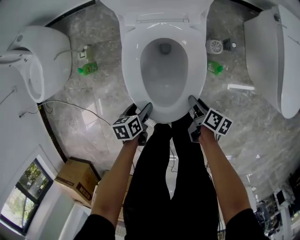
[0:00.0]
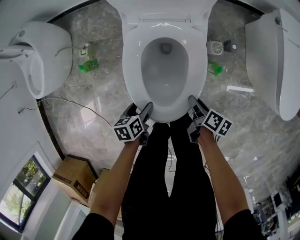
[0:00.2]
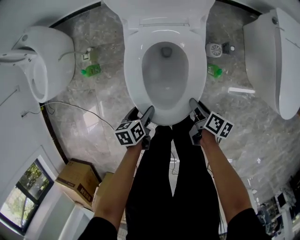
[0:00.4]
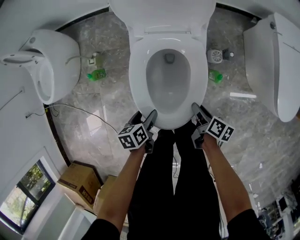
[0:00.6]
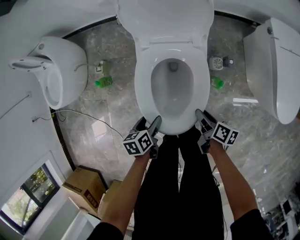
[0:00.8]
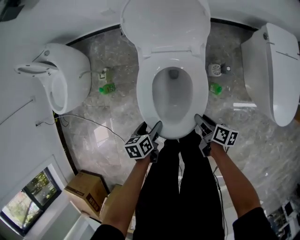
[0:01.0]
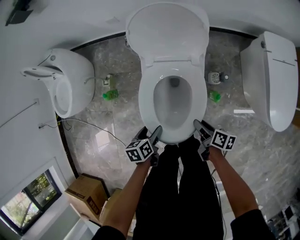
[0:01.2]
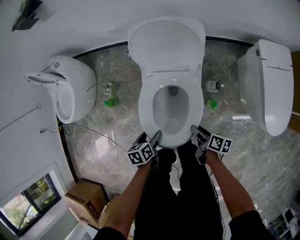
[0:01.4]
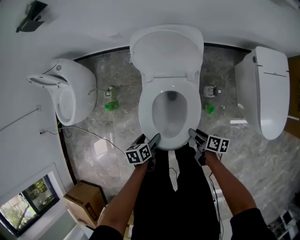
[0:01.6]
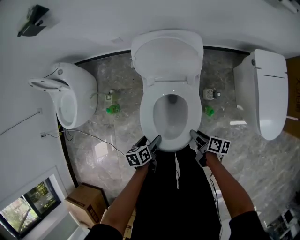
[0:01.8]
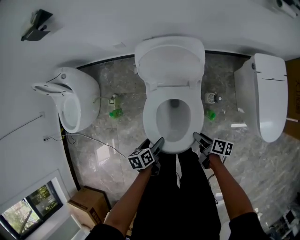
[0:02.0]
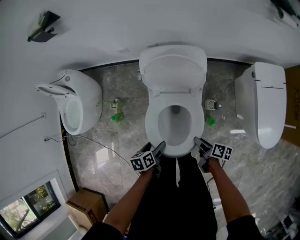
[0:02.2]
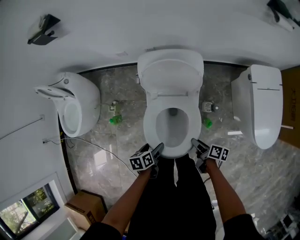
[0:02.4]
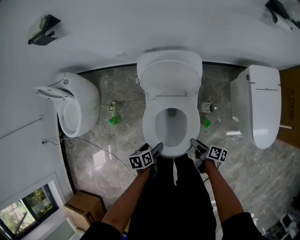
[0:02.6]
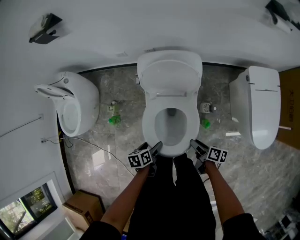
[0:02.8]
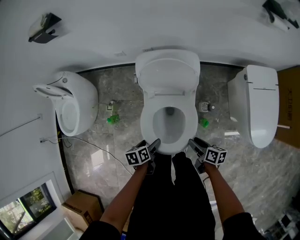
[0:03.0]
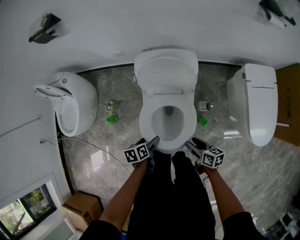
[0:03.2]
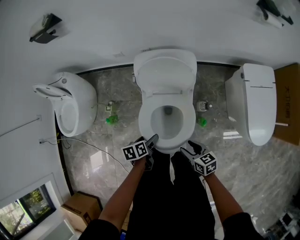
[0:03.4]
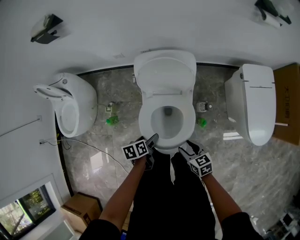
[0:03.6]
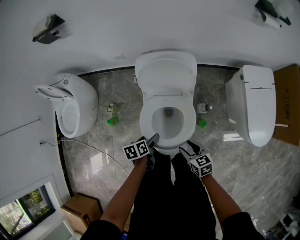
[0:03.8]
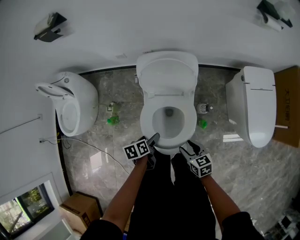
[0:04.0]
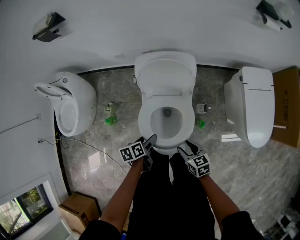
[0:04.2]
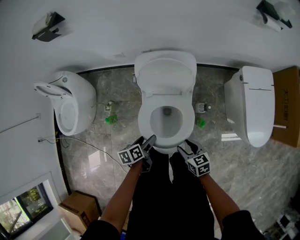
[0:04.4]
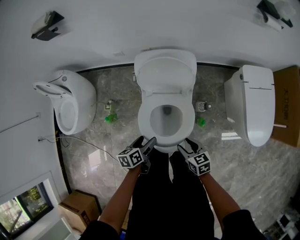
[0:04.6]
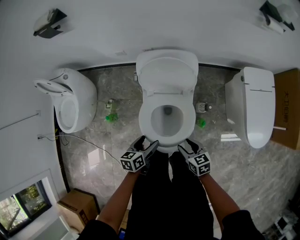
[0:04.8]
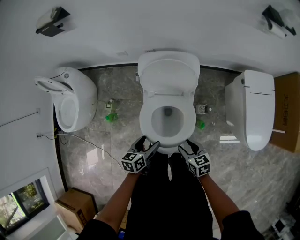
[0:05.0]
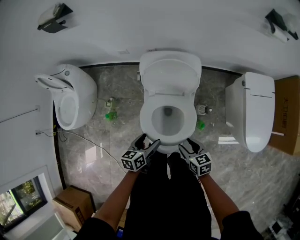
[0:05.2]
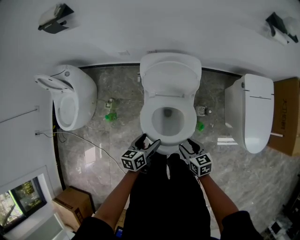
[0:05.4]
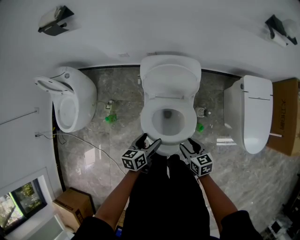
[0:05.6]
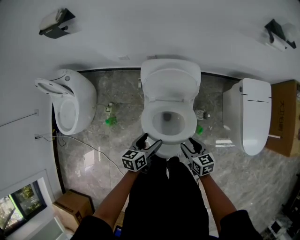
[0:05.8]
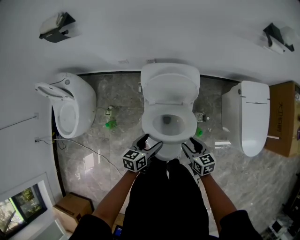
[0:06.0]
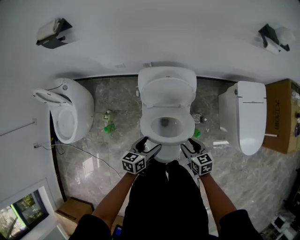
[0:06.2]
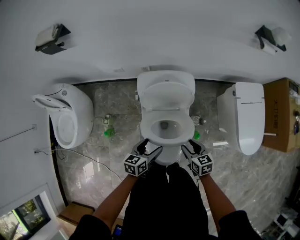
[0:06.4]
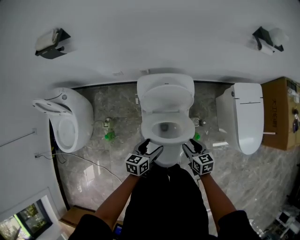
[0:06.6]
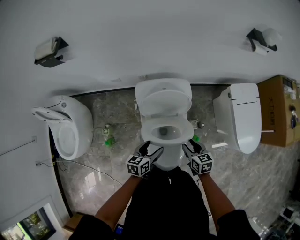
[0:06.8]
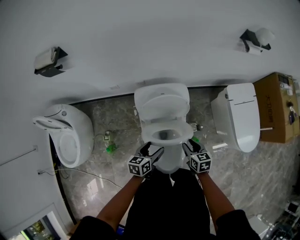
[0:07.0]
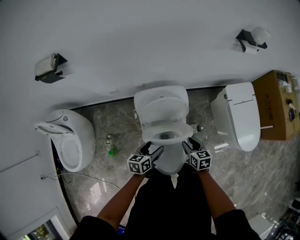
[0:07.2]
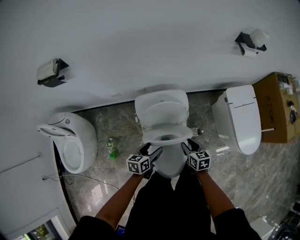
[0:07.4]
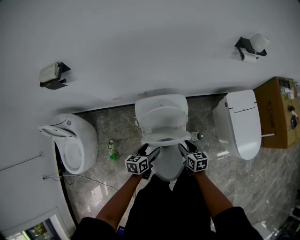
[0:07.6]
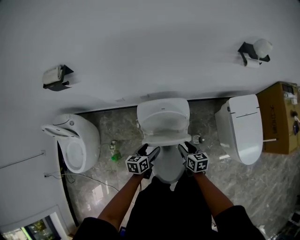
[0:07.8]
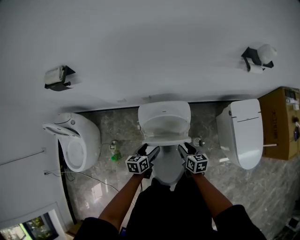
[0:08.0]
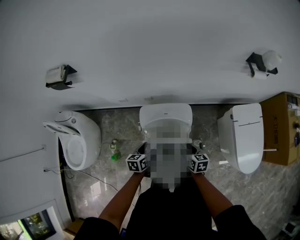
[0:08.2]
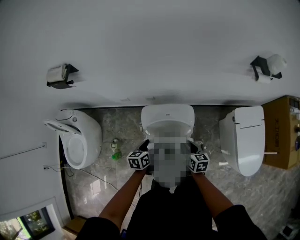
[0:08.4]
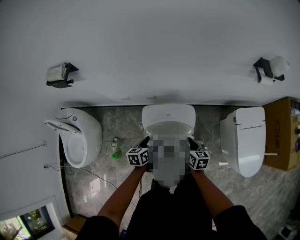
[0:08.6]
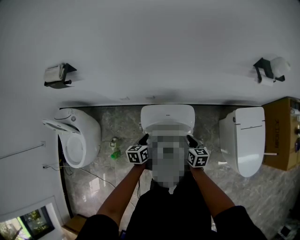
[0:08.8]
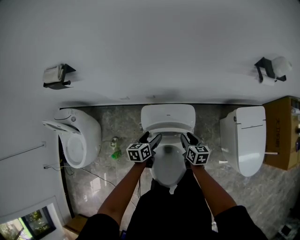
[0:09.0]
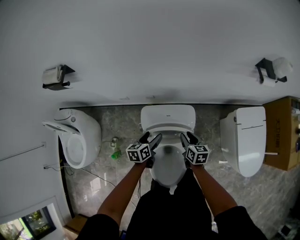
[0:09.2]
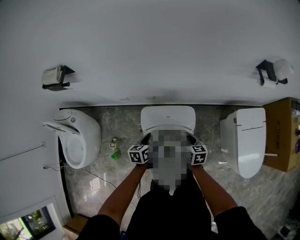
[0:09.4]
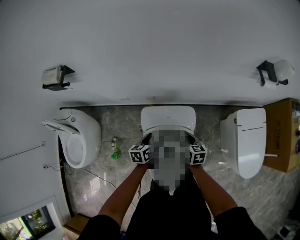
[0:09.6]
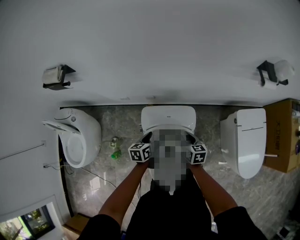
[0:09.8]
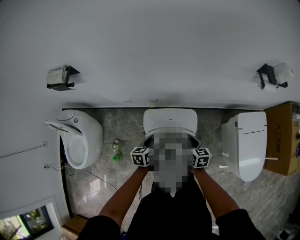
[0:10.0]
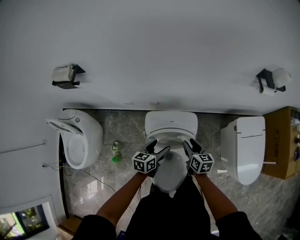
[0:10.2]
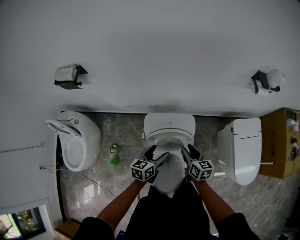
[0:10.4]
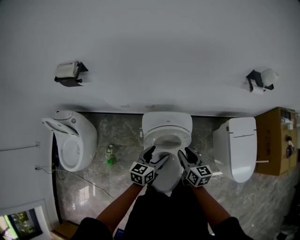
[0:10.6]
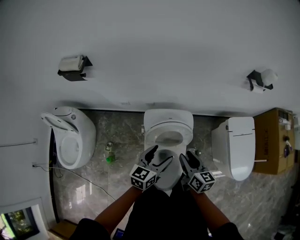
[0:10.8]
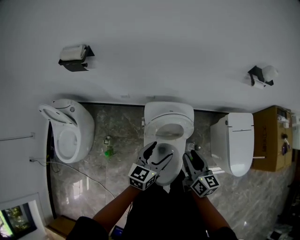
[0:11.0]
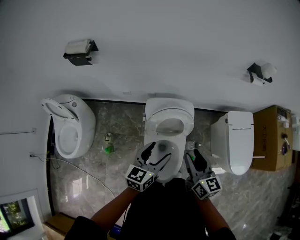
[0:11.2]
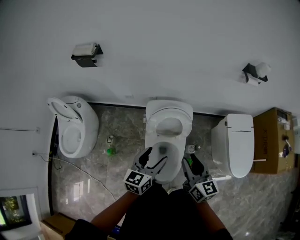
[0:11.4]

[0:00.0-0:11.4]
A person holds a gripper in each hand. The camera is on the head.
0.0 to 1.4 s: Both grippers move upward, approximately 15 cm.
1.4 to 2.8 s: The left gripper travels upward and forward by roughly 10 cm; the right gripper is displaced upward by about 5 cm.
2.8 to 4.2 s: The right gripper shifts some 10 cm upward and to the left, and rolls counterclockwise, seen from behind, by approximately 50 degrees.
4.2 to 5.6 s: The left gripper goes some 5 cm upward, and rotates some 20 degrees.
5.6 to 7.2 s: The right gripper travels forward and upward by approximately 15 cm, while the left gripper goes approximately 10 cm forward.
7.2 to 8.6 s: The two grippers go roughly 15 cm forward.
8.6 to 10.0 s: There are only small adjustments of the grippers.
10.0 to 11.4 s: Both grippers travel together backward and upward, approximately 35 cm. The right gripper changes its angle by some 20 degrees. Meanwhile the left gripper turns by roughly 30 degrees.

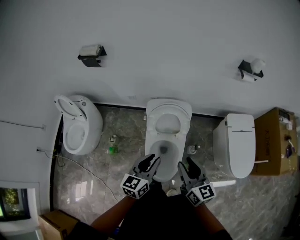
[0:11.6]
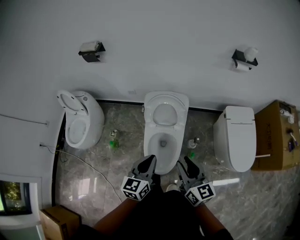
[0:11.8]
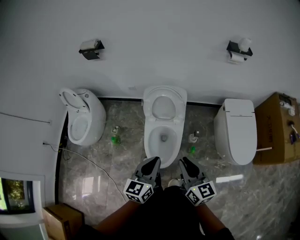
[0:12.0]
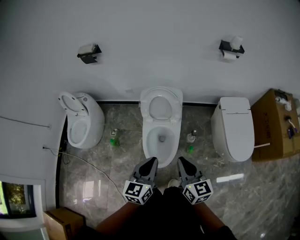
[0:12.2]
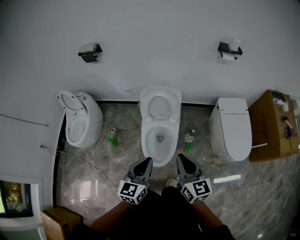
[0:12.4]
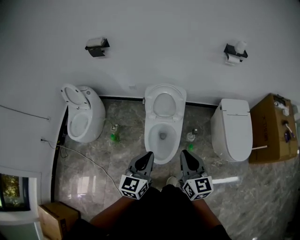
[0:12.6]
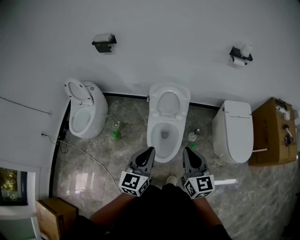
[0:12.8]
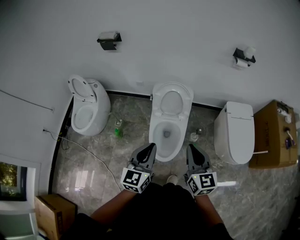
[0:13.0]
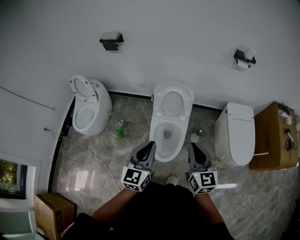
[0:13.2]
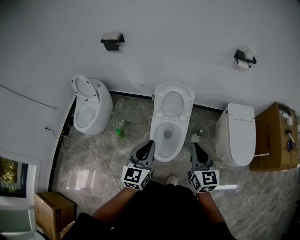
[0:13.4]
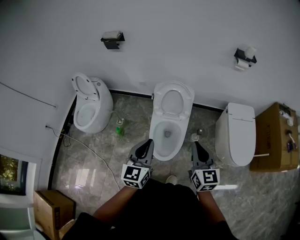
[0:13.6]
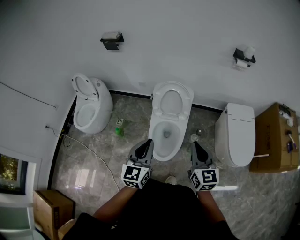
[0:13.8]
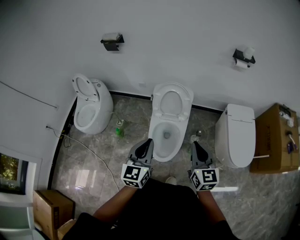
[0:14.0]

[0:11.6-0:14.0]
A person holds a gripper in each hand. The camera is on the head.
11.6 to 12.8 s: The left gripper shifts roughly 20 cm backward and upward. The right gripper goes some 15 cm backward, and closes.
12.8 to 14.0 s: The right gripper shifts approximately 5 cm to the right.

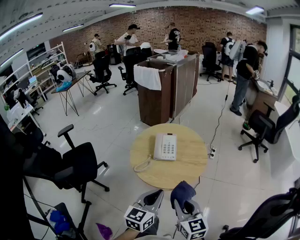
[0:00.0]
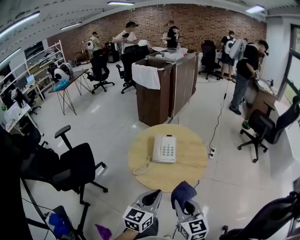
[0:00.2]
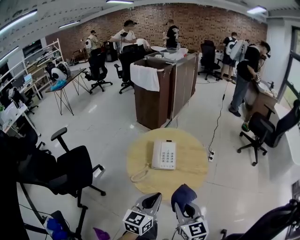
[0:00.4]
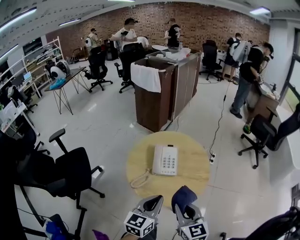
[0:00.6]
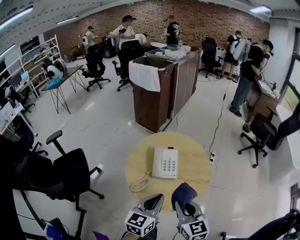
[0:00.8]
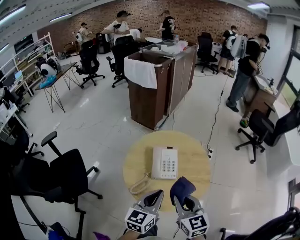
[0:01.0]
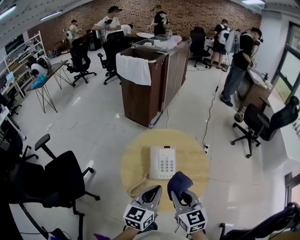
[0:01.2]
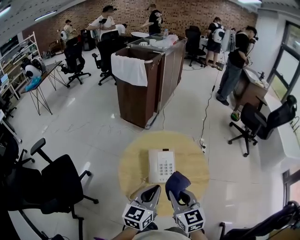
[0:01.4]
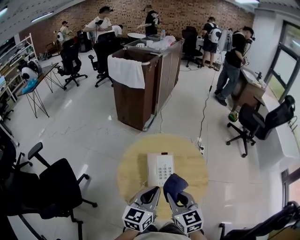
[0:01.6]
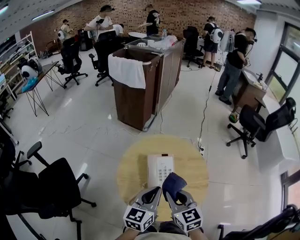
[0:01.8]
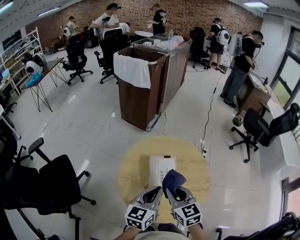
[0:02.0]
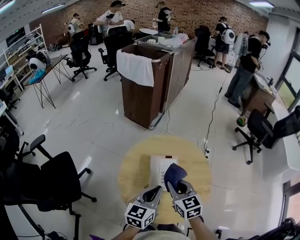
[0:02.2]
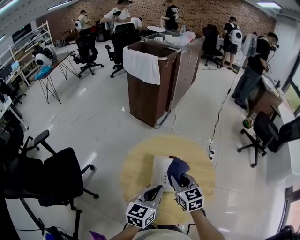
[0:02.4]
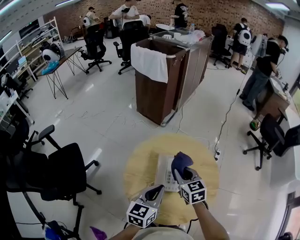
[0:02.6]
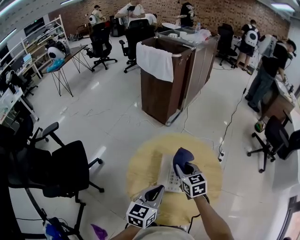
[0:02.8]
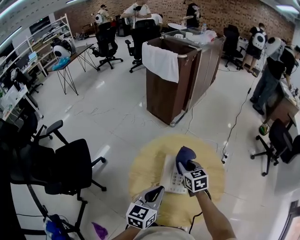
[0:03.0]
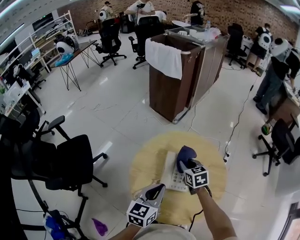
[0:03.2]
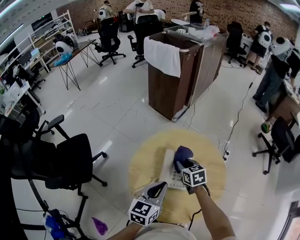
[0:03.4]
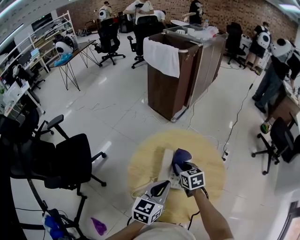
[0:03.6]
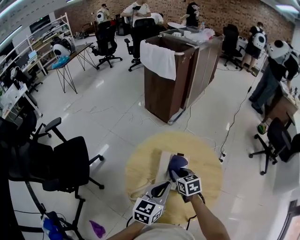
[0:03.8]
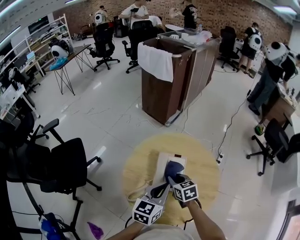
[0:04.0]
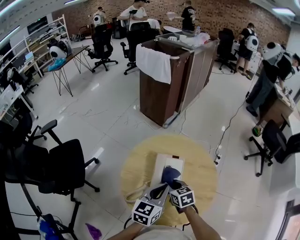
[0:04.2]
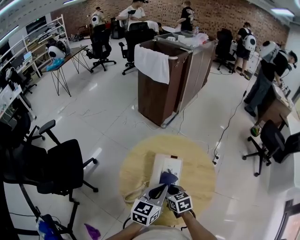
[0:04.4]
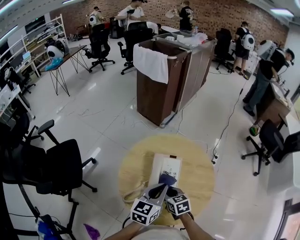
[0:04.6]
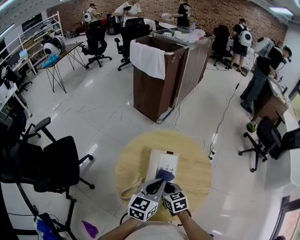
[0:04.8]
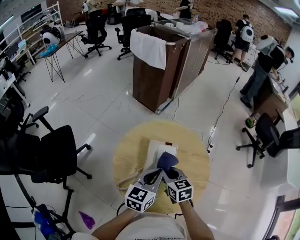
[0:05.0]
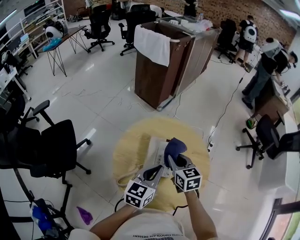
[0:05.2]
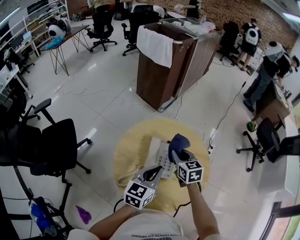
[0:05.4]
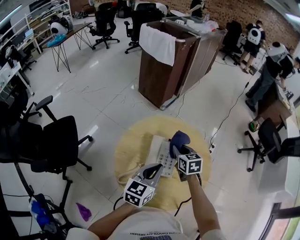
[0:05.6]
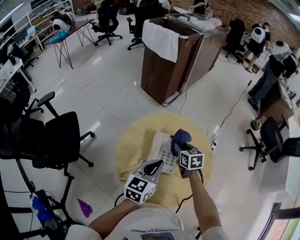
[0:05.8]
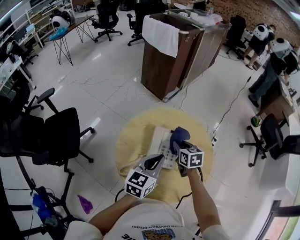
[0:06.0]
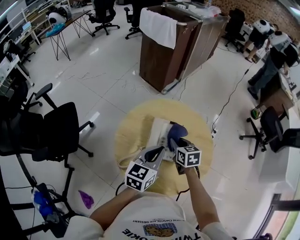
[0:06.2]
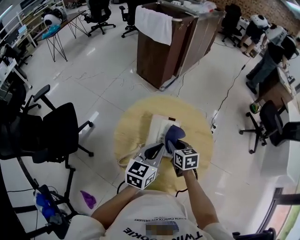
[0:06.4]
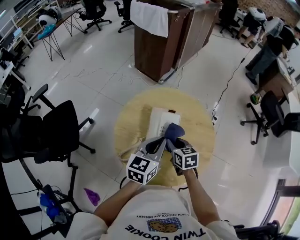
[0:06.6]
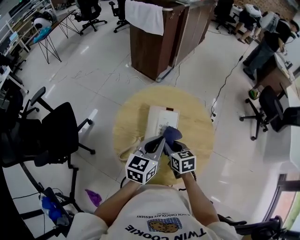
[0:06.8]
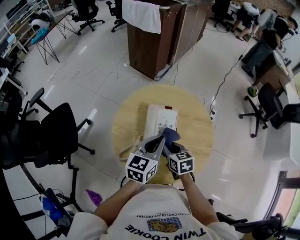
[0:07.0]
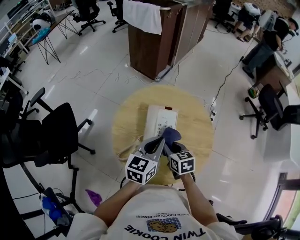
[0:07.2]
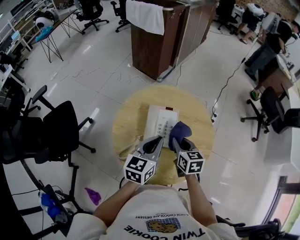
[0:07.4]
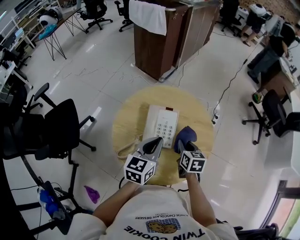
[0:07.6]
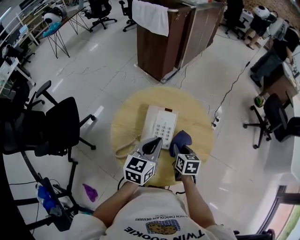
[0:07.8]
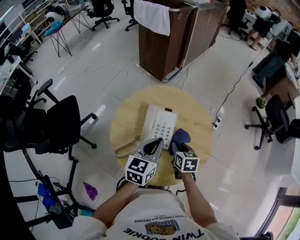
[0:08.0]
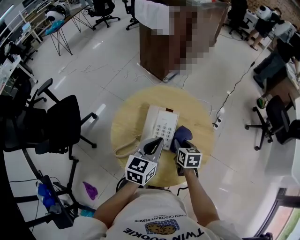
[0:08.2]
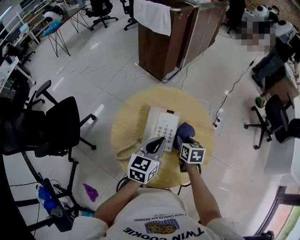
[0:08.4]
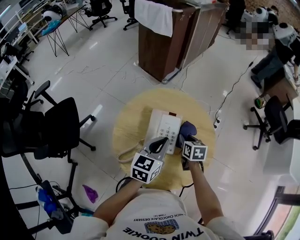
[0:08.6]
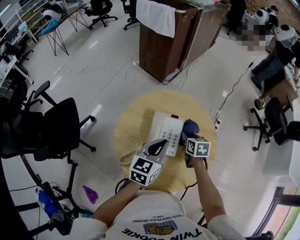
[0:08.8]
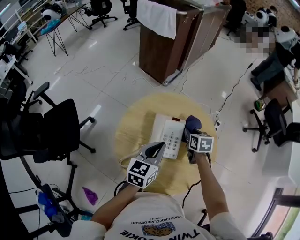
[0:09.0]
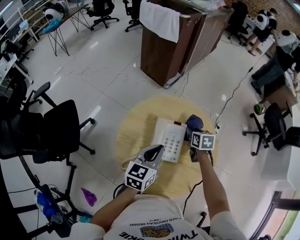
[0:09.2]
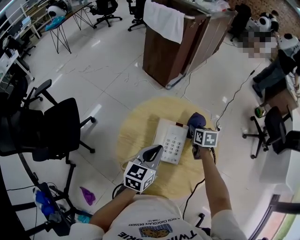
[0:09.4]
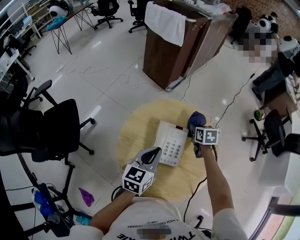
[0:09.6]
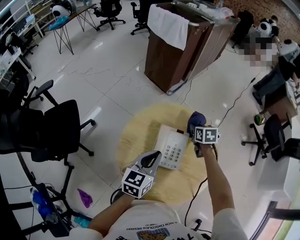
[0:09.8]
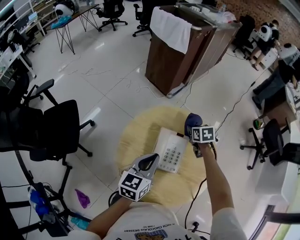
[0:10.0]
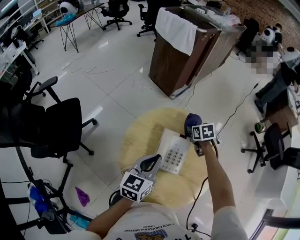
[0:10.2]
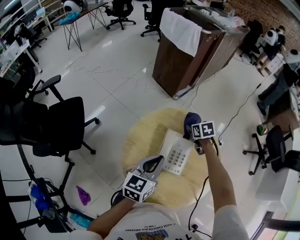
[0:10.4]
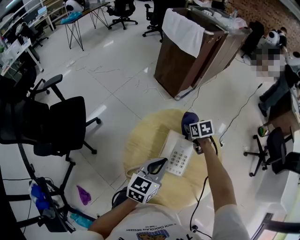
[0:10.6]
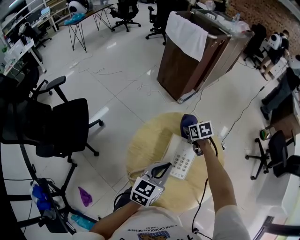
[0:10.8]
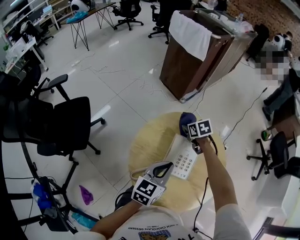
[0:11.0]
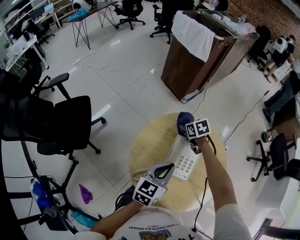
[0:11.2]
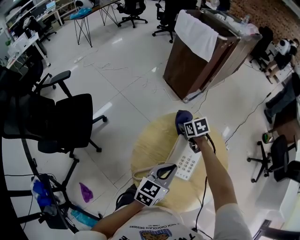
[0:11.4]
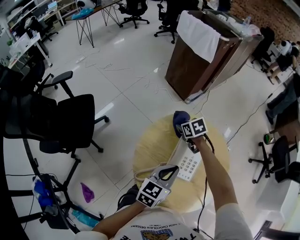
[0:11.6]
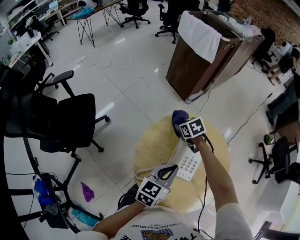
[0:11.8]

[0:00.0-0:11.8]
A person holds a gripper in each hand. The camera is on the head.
0.0 to 1.4 s: Both grippers move forward, roughly 20 cm.
1.4 to 3.0 s: The right gripper is displaced forward and downward by about 25 cm; the left gripper shifts roughly 5 cm forward.
3.0 to 4.4 s: The right gripper is displaced backward and downward by some 15 cm, while the left gripper travels to the right by roughly 5 cm.
4.4 to 6.0 s: The right gripper shifts roughly 15 cm forward and to the right.
6.0 to 7.4 s: The right gripper heads backward, covering about 10 cm.
7.4 to 8.8 s: The right gripper heads forward and downward, covering approximately 10 cm.
8.8 to 10.4 s: The left gripper is displaced to the left by about 5 cm. Meanwhile the right gripper moves forward and to the left, roughly 15 cm, and turns by approximately 20 degrees.
10.4 to 11.8 s: The right gripper travels to the left by approximately 15 cm.
